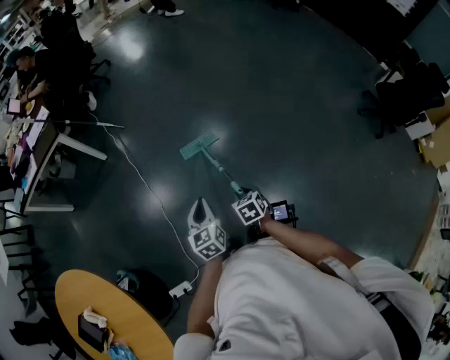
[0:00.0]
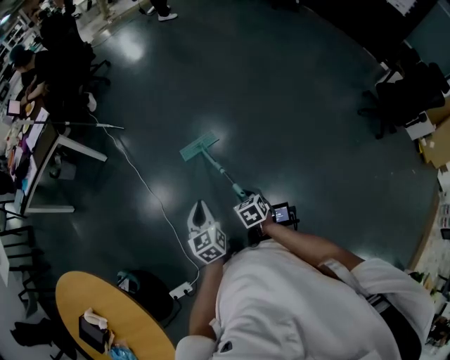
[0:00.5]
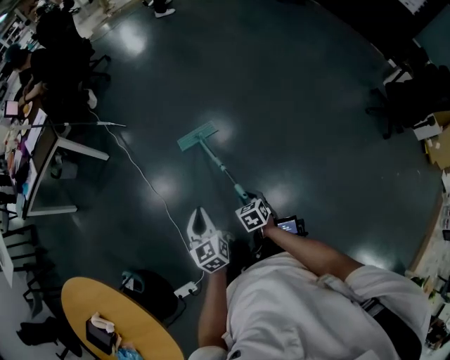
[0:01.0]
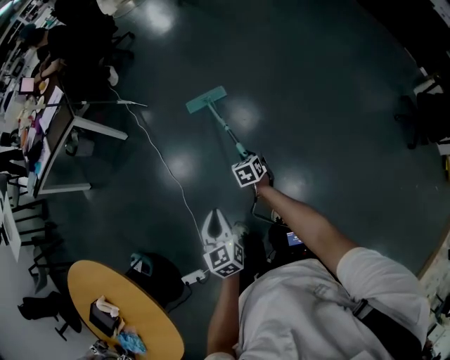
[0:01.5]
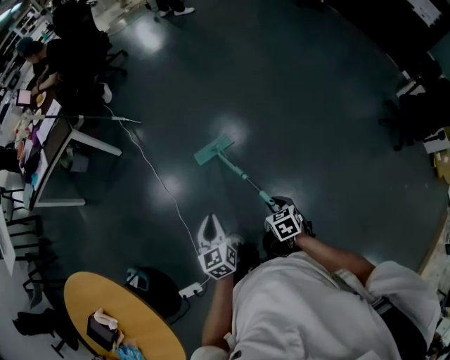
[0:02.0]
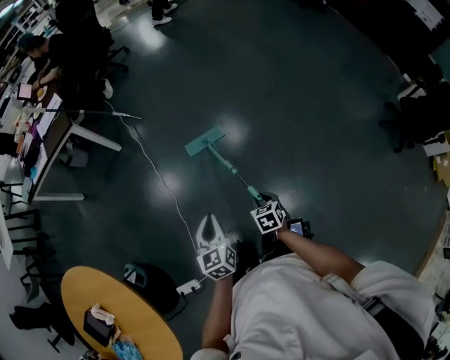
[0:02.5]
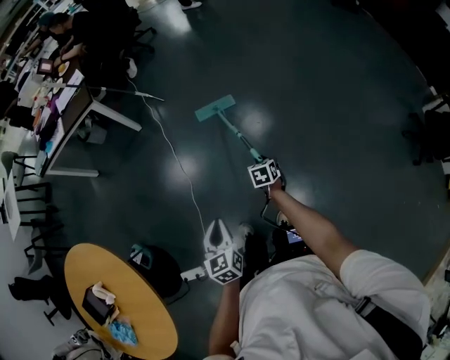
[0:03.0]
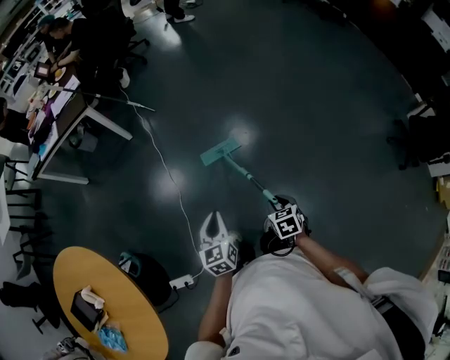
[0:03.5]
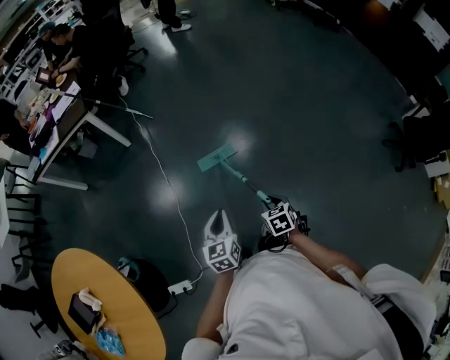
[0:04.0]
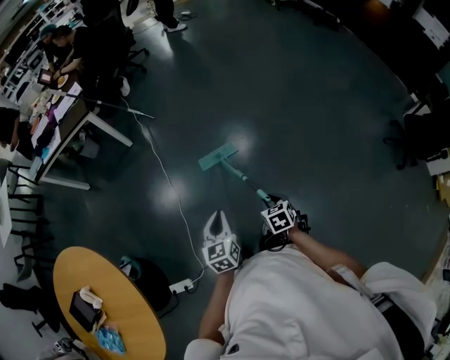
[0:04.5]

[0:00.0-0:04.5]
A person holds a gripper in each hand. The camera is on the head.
0:00.0 to 0:02.0: The left gripper is displaced to the left by some 5 cm; the right gripper travels forward and back again, roughly 25 cm each way.
0:02.0 to 0:04.5: The left gripper is displaced backward by about 5 cm. The right gripper reaches approximately 20 cm forward, then returns.

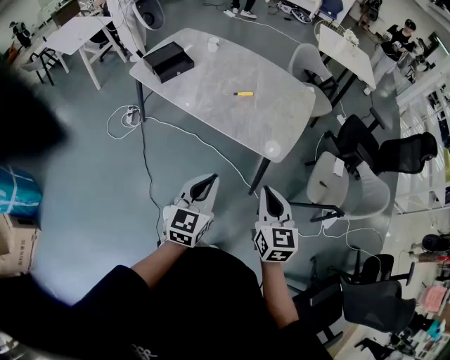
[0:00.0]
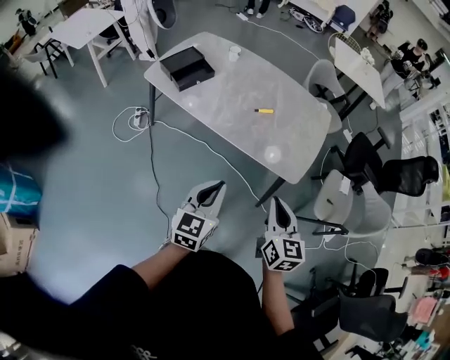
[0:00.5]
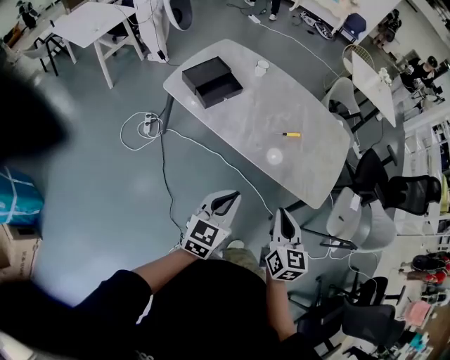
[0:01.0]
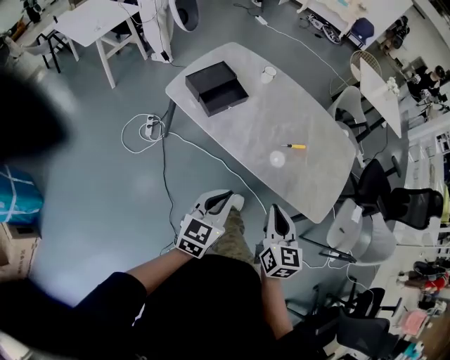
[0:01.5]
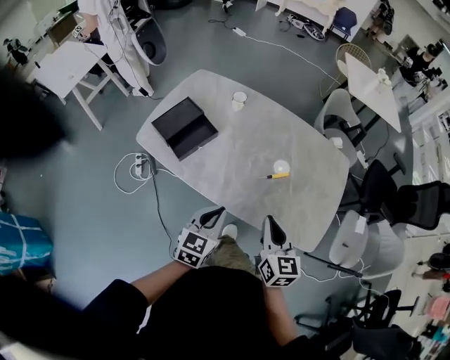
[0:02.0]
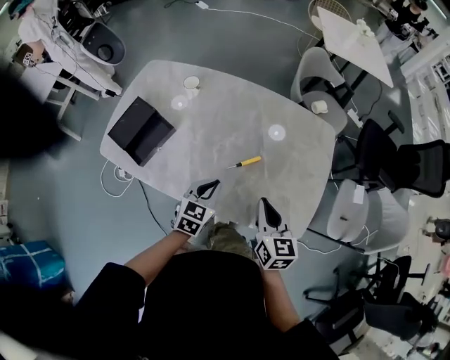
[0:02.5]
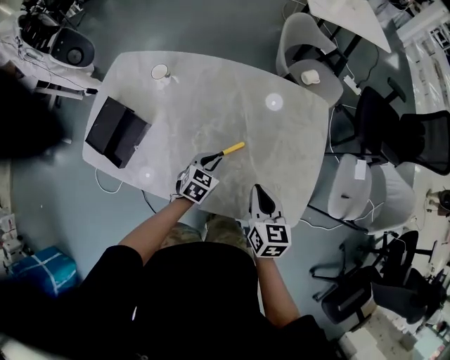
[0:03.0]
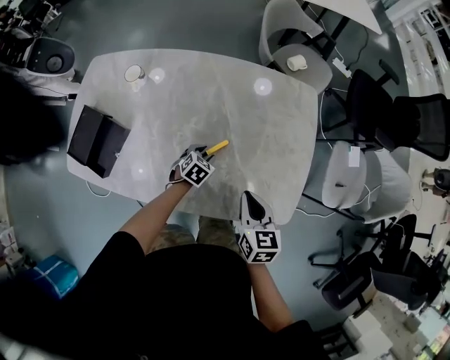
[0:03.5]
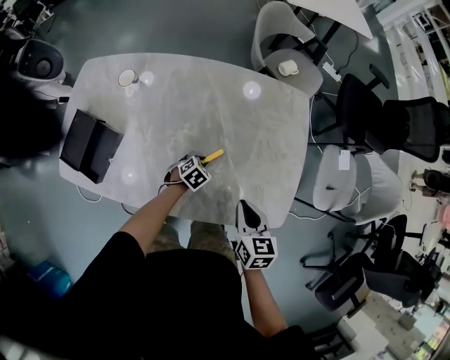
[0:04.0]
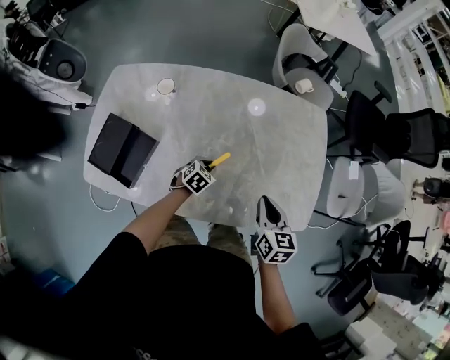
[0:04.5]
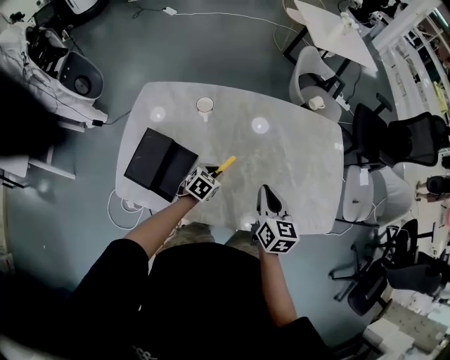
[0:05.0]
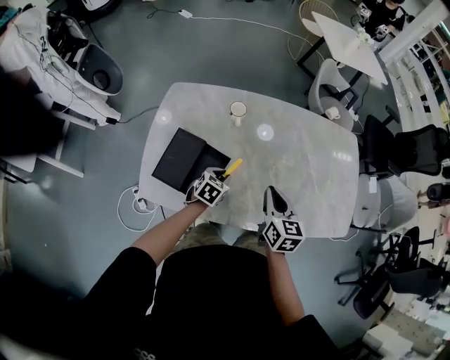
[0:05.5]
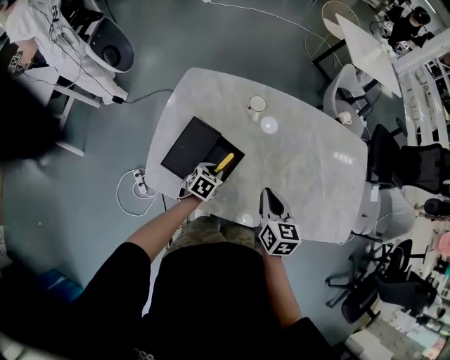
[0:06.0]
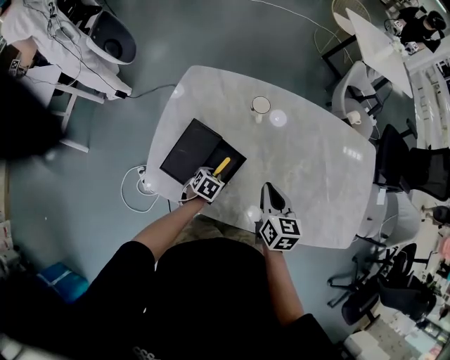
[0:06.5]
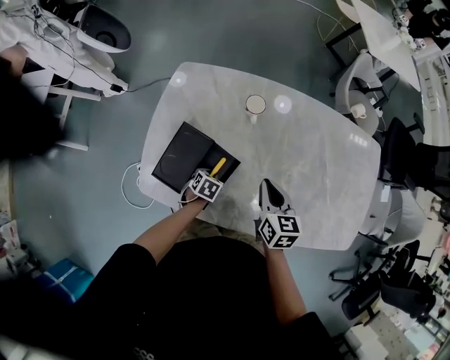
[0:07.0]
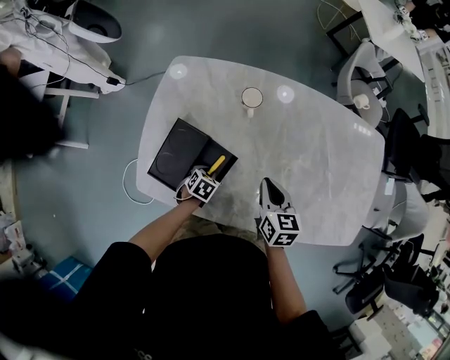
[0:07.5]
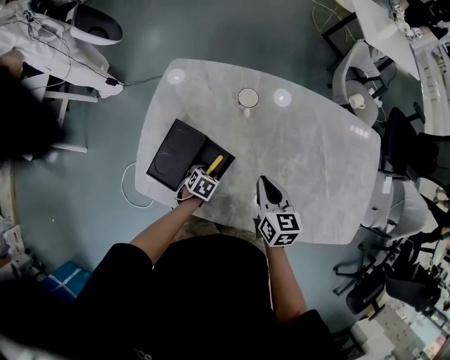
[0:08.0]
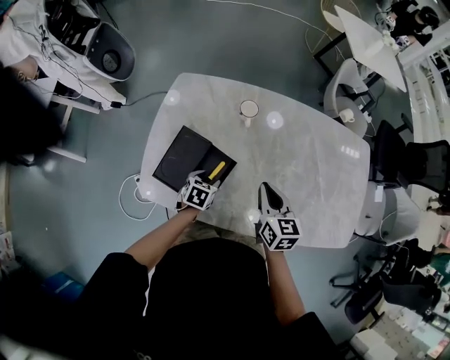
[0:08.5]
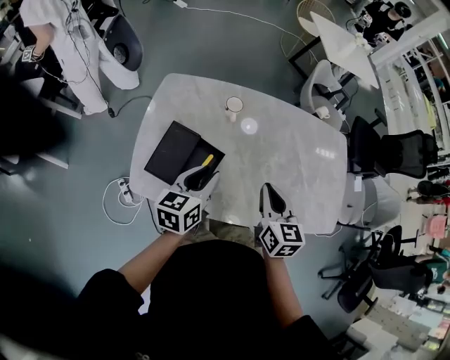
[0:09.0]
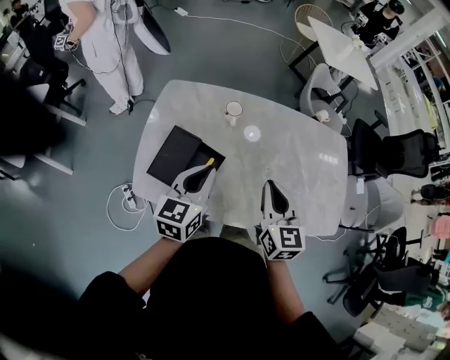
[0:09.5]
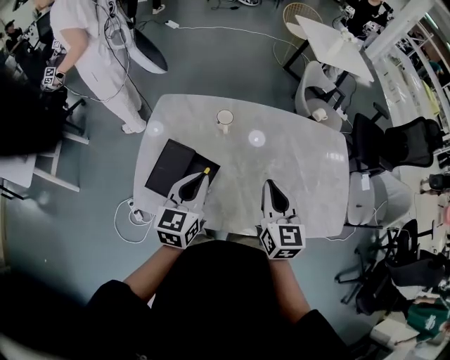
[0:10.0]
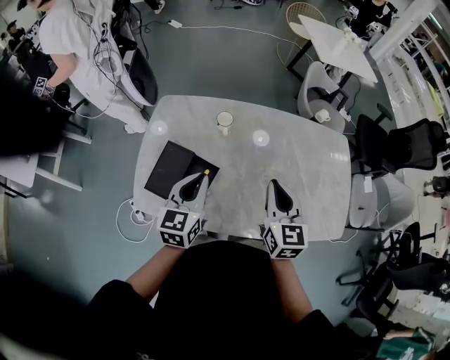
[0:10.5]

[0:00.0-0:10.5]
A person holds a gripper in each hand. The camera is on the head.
0:00.0 to 0:02.0: The pair of grippers is taken forward and to the left, some 40 cm.
0:02.0 to 0:04.0: The right gripper moves some 30 cm, and turns by approximately 30 degrees. The left gripper moves some 50 cm, and points its fingers some 40 degrees further downward.
0:04.0 to 0:06.5: Both grippers are carried to the left, approximately 50 cm. The left gripper changes its angle by roughly 30 degrees.
0:06.5 to 0:08.5: The left gripper moves upward, some 5 cm, and opens its fingers.
0:08.5 to 0:10.5: The left gripper shifts some 30 cm upward, tips its fingers upward by approximately 40 degrees, and closes. Meanwhile the right gripper travels upward and to the right by roughly 15 cm.

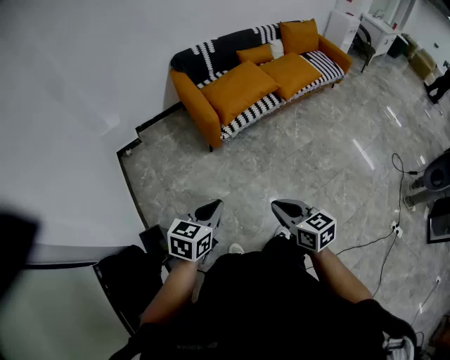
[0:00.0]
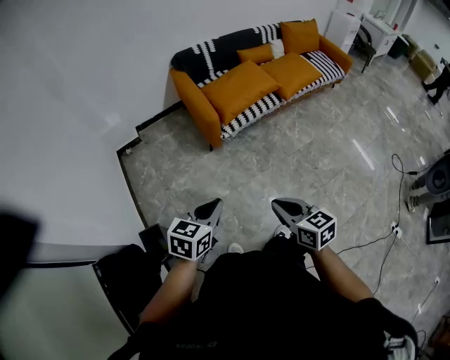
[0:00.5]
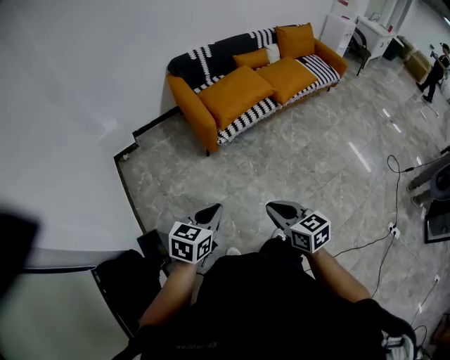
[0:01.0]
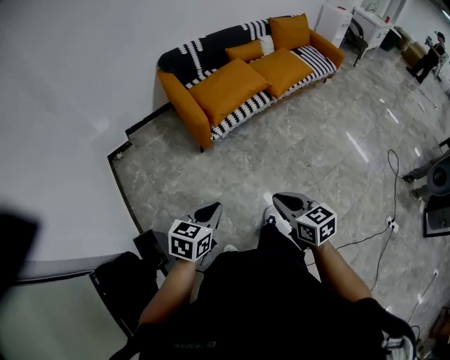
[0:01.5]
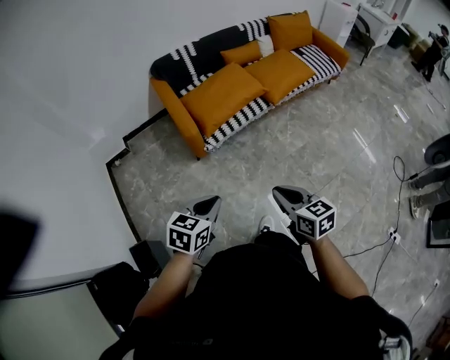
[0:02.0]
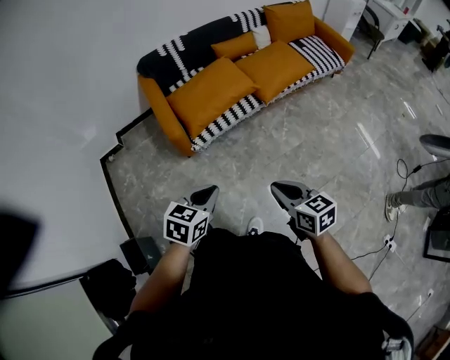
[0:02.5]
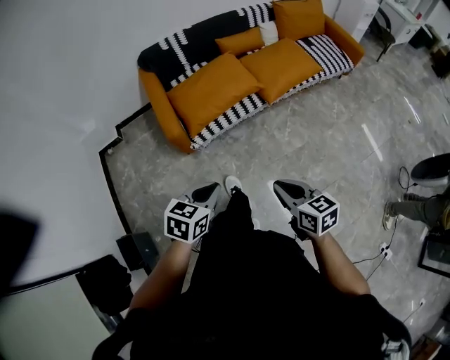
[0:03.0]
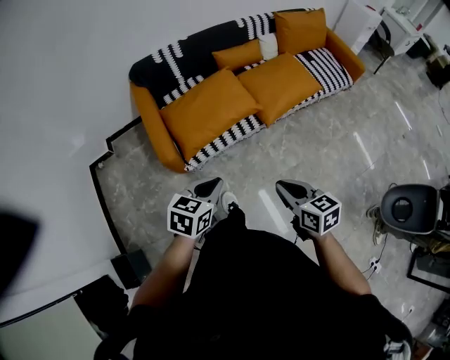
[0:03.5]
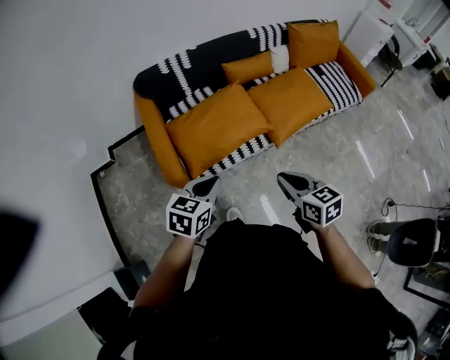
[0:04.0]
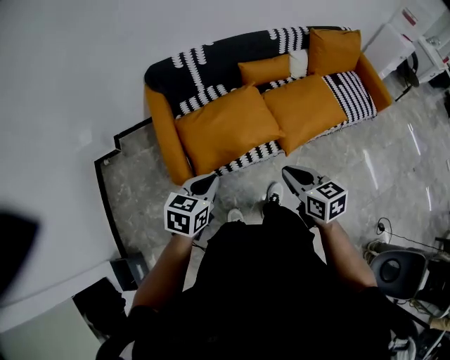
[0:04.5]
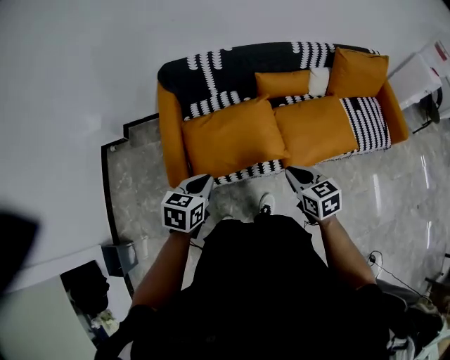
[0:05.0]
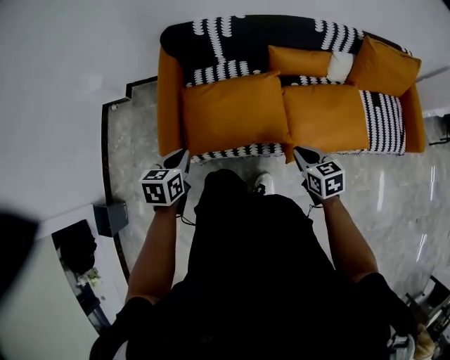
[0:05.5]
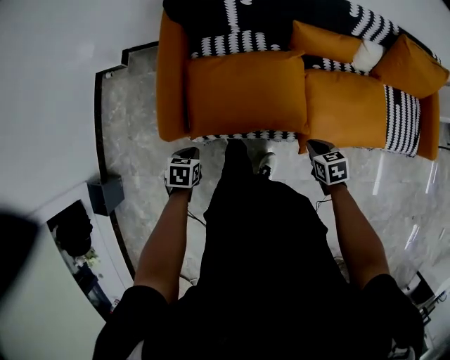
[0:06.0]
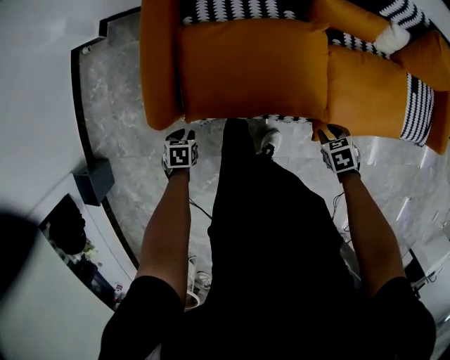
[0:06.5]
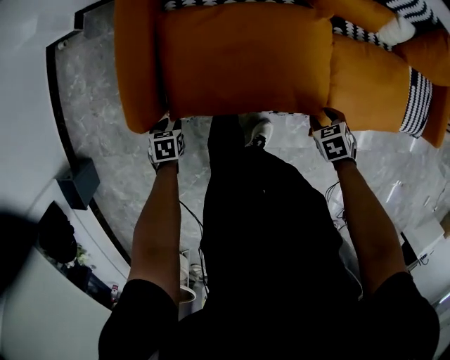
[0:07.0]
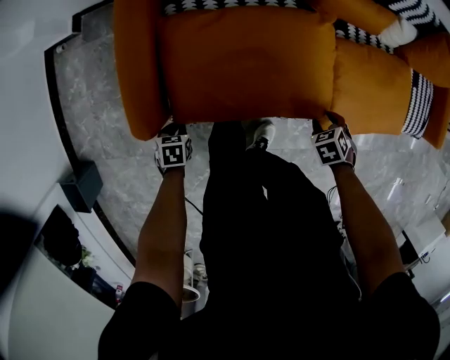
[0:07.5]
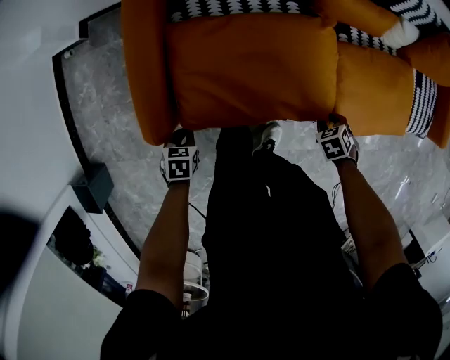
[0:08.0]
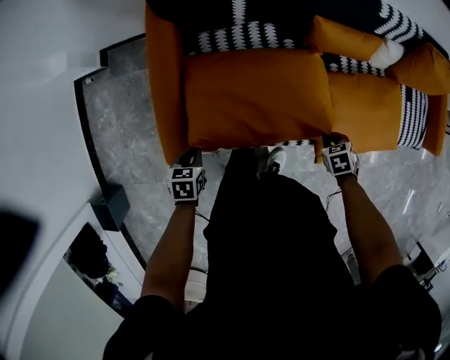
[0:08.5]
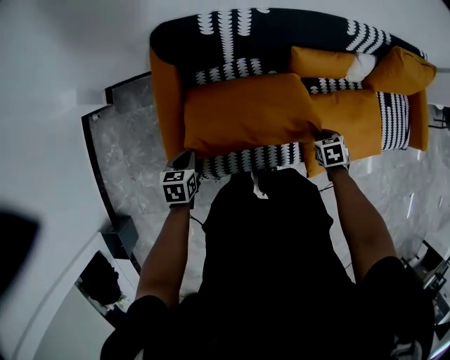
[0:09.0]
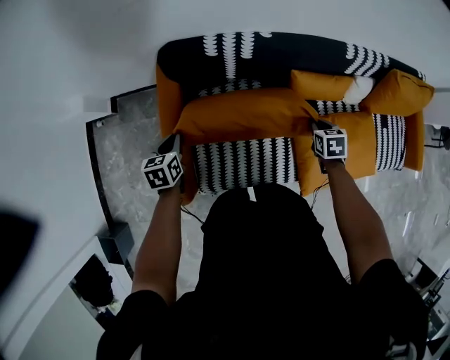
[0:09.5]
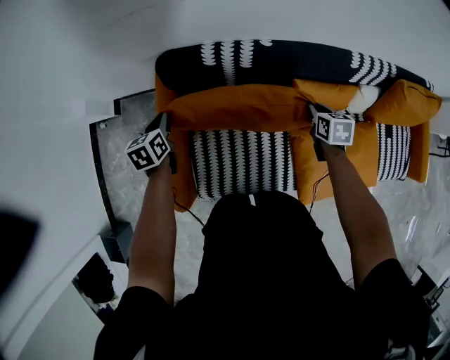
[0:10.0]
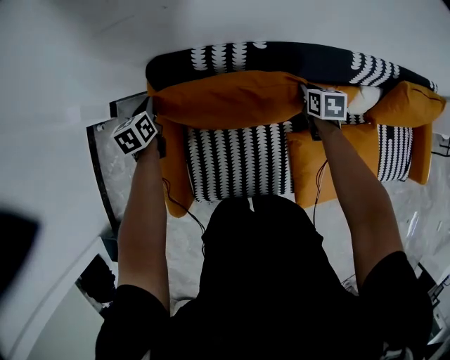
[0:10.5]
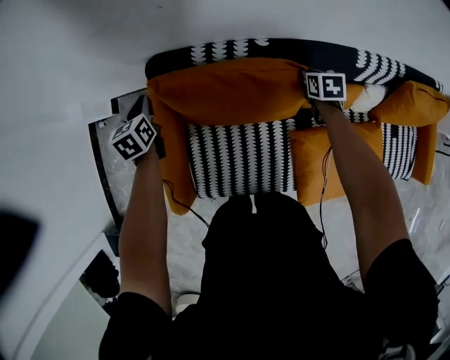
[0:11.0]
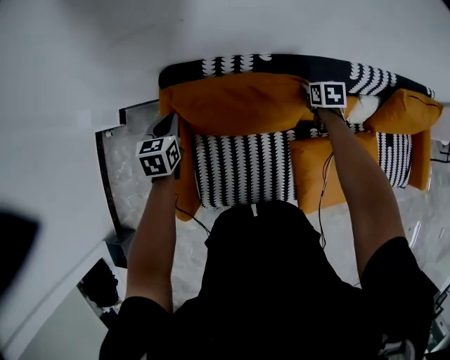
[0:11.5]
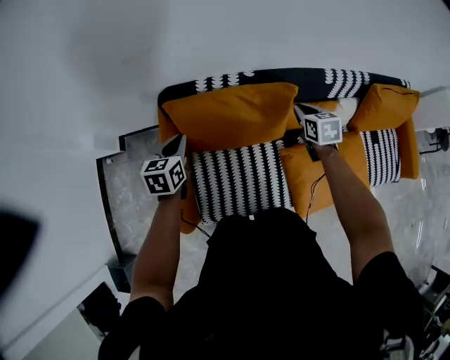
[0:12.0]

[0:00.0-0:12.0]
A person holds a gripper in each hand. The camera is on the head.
0:00.0 to 0:02.0: Both grippers move forward and to the right, about 20 cm.
0:02.0 to 0:04.0: Both grippers are carried forward, some 40 cm.
0:04.0 to 0:06.0: The right gripper changes place by some 40 cm, and points its fingers approximately 30 degrees further downward. The left gripper goes roughly 30 cm downward, and points its fingers approximately 30 degrees further downward.
0:06.0 to 0:08.0: The two grippers go about 15 cm downward. The left gripper opens, then closes once more, while the right gripper turns by about 30 degrees.
0:08.0 to 0:10.0: The left gripper moves roughly 50 cm, and rotates some 30 degrees; the right gripper moves roughly 40 cm, and rotates some 50 degrees.
0:10.0 to 0:12.0: The right gripper shifts some 10 cm upward, and opens, then closes once more, while the left gripper goes some 15 cm upward and to the right.
